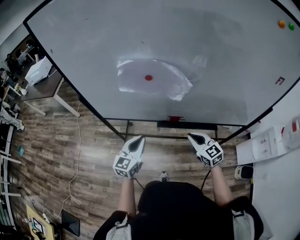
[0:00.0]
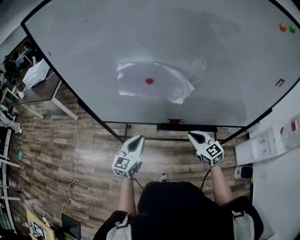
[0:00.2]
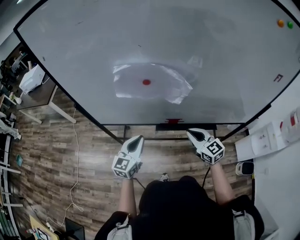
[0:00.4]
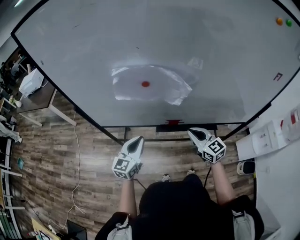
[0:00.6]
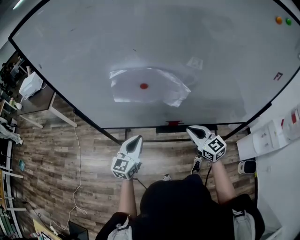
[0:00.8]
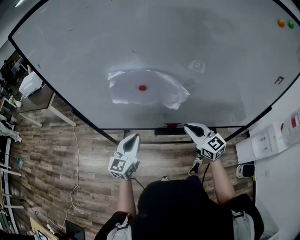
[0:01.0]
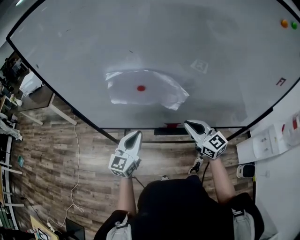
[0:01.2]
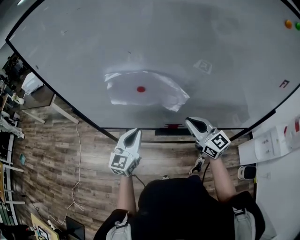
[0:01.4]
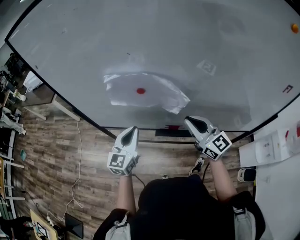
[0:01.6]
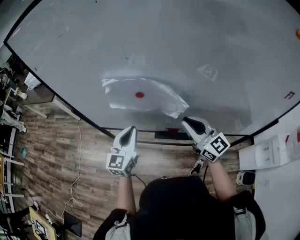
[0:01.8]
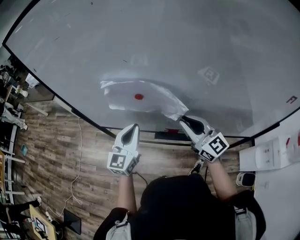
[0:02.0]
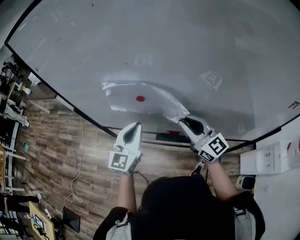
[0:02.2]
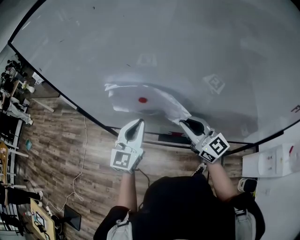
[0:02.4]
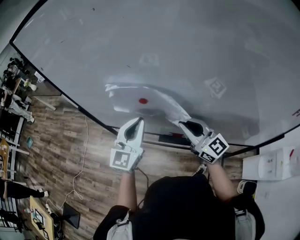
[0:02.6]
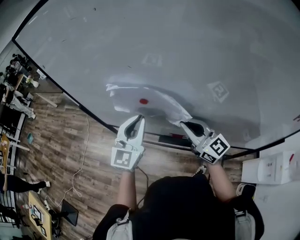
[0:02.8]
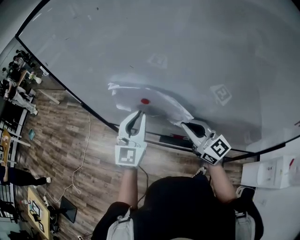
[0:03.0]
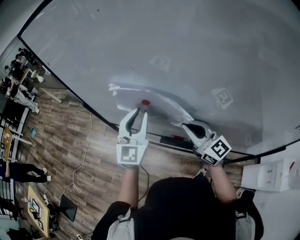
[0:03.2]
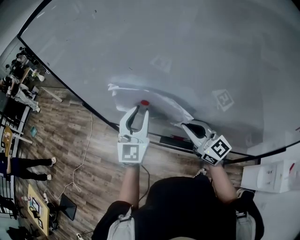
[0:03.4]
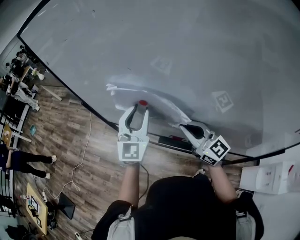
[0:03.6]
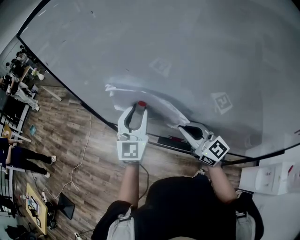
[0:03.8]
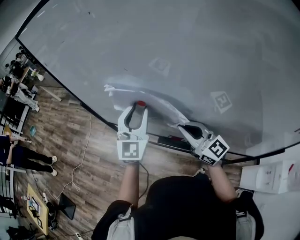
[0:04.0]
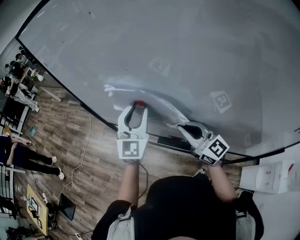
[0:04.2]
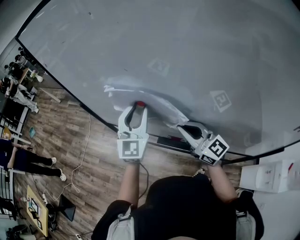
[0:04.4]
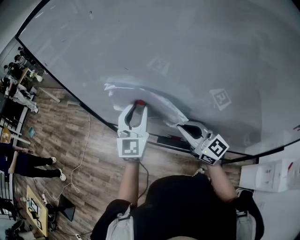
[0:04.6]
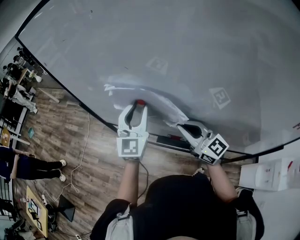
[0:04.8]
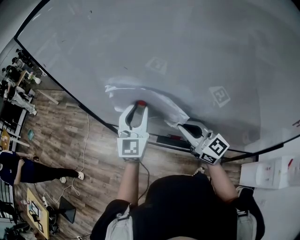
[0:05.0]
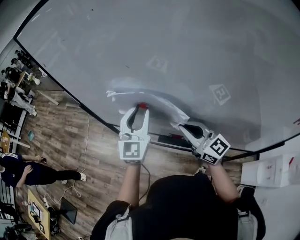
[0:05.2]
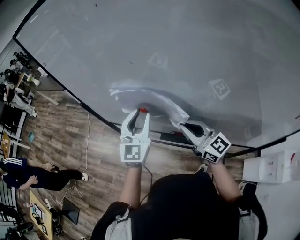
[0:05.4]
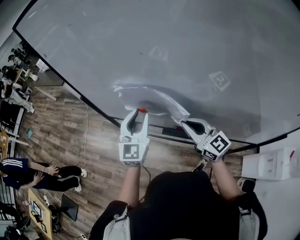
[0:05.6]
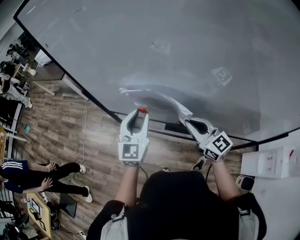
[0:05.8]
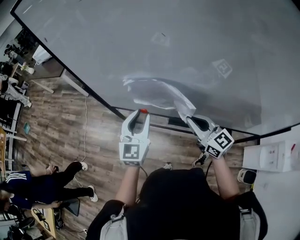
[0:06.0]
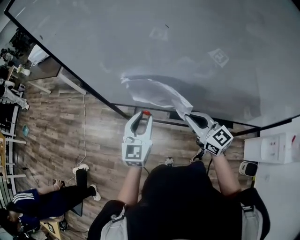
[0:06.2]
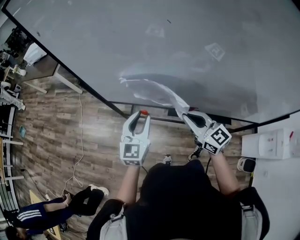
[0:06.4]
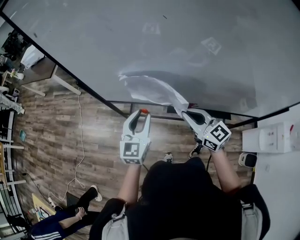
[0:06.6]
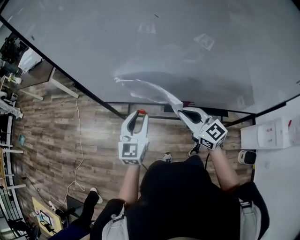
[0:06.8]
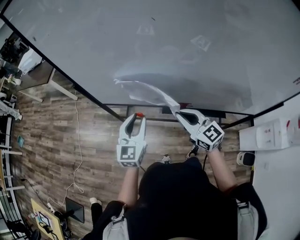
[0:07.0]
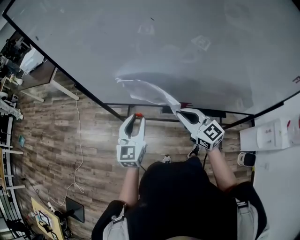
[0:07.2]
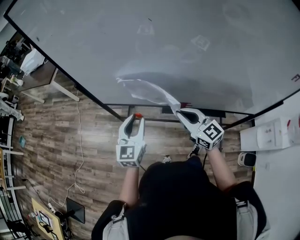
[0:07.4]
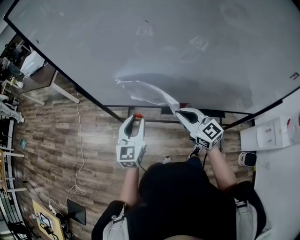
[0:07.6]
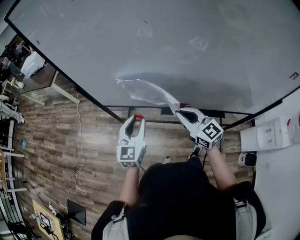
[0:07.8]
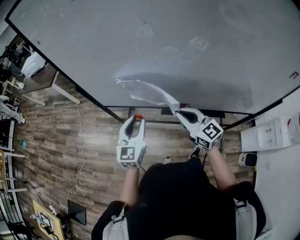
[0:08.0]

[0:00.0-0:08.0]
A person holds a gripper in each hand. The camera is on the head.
0:00.0 to 0:01.6: The left gripper shifts about 10 cm forward and upward. The right gripper goes roughly 15 cm upward and forward, and turns by some 20 degrees.
0:01.6 to 0:03.2: The left gripper travels upward and to the right by roughly 15 cm, and turns by some 20 degrees; the right gripper ends up about 5 cm from where it was.
0:03.2 to 0:04.8: There are only small adjustments of the grippers.
0:04.8 to 0:06.4: The left gripper is displaced downward and to the left by roughly 20 cm, and swivels about 20 degrees, while the right gripper moves to the left and downward, some 10 cm.
0:06.4 to 0:08.0: There are only small adjustments of the grippers.

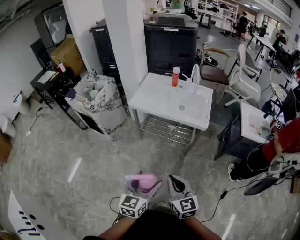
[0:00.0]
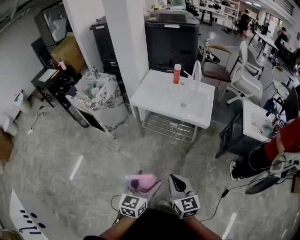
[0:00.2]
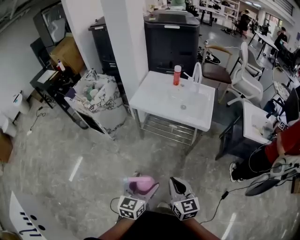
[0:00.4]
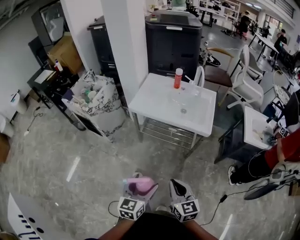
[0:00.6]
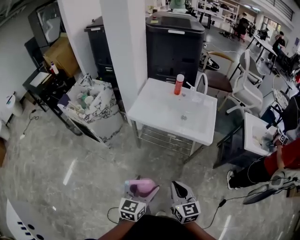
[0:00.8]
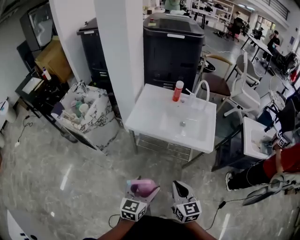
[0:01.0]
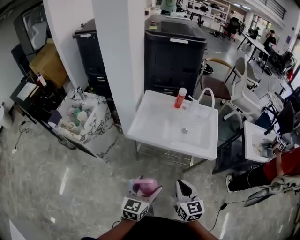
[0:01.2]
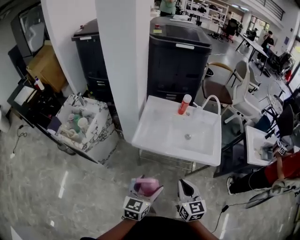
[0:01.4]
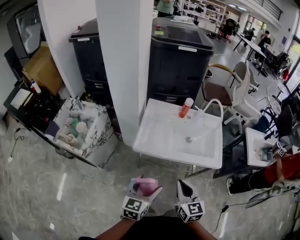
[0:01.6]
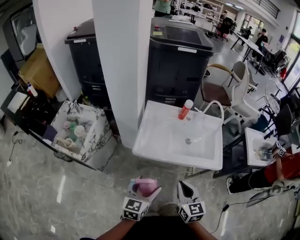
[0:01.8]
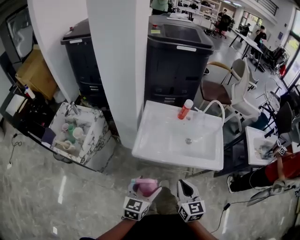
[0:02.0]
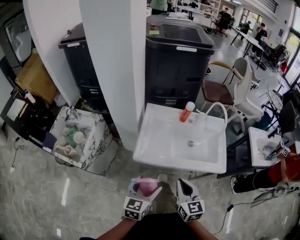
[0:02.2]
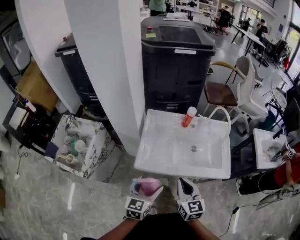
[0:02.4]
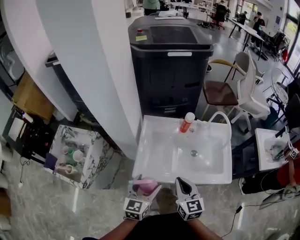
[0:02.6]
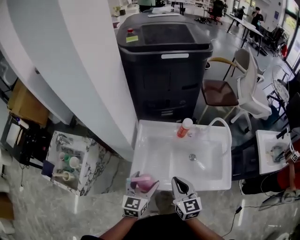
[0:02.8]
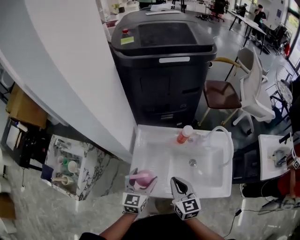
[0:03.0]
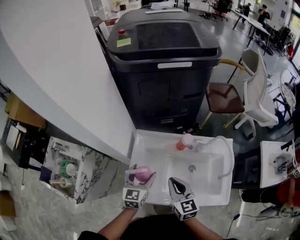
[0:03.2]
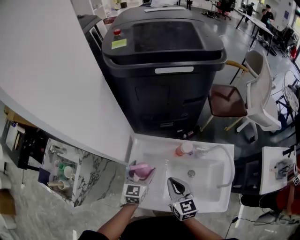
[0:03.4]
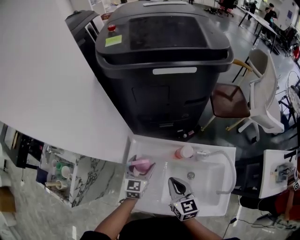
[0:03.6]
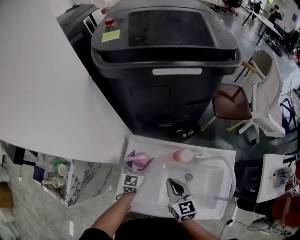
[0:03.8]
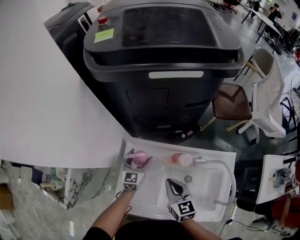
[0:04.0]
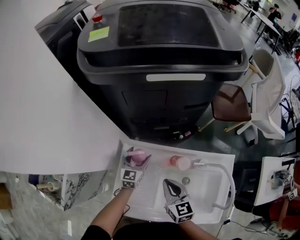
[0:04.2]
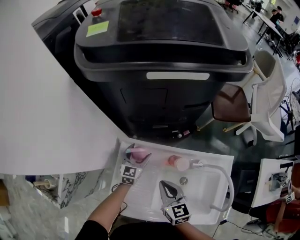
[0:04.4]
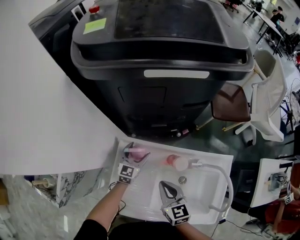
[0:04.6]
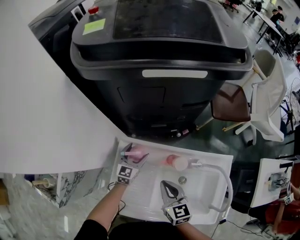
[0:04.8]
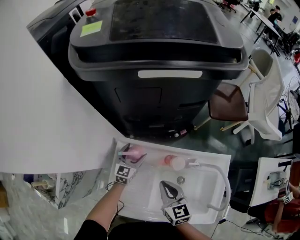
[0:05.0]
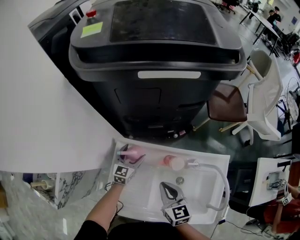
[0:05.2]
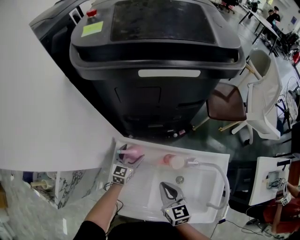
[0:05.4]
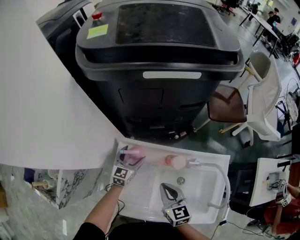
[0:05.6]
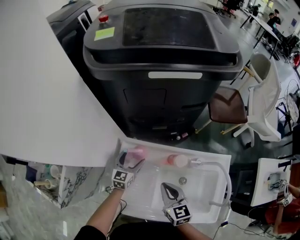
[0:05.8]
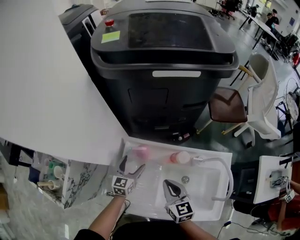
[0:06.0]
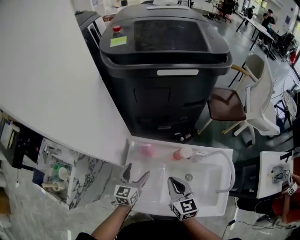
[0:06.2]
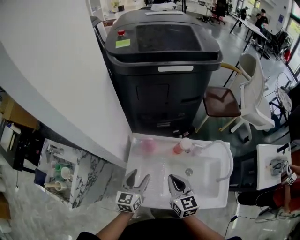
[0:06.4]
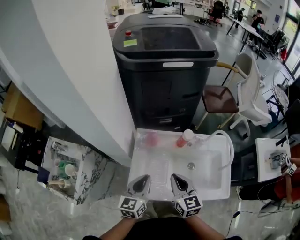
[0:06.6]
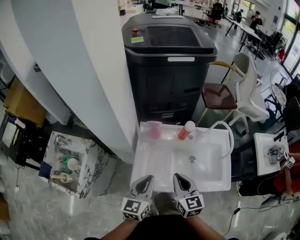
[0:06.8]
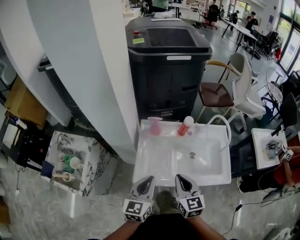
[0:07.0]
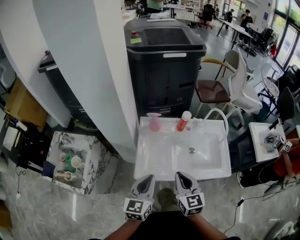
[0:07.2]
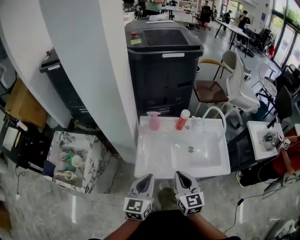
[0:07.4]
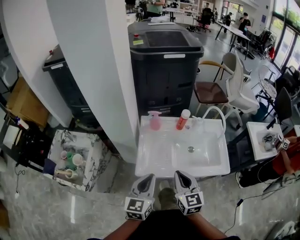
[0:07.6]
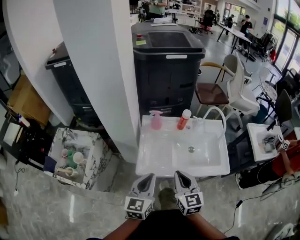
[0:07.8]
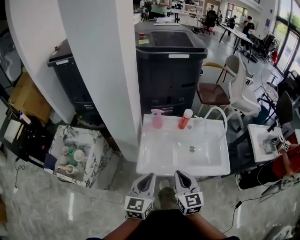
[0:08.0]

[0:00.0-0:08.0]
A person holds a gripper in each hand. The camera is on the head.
0:00.0 to 0:01.6: The grippers both shift forward and to the left by about 40 cm.
0:01.6 to 0:03.2: Both grippers travel together forward, some 40 cm.
0:03.2 to 0:04.8: The right gripper travels forward and downward by roughly 15 cm. Meanwhile the left gripper moves forward and downward, approximately 25 cm.
0:04.8 to 0:06.4: The left gripper heads backward and upward, covering about 25 cm. Meanwhile the right gripper is displaced backward and upward by some 10 cm.
0:06.4 to 0:08.0: The right gripper travels backward by some 25 cm; the left gripper shifts approximately 30 cm backward and upward, and closes.

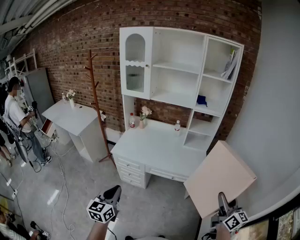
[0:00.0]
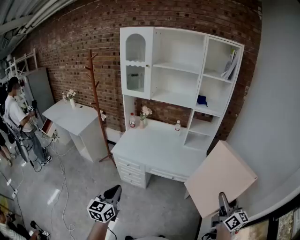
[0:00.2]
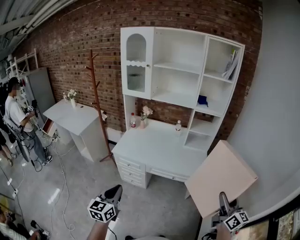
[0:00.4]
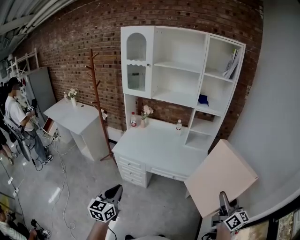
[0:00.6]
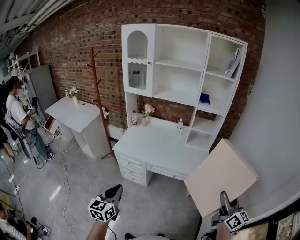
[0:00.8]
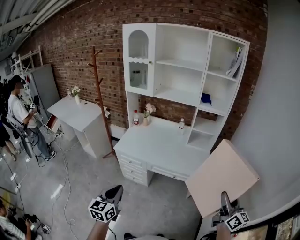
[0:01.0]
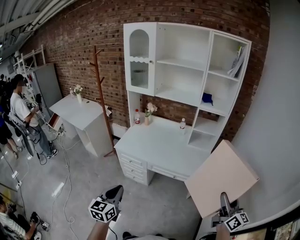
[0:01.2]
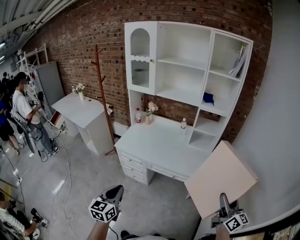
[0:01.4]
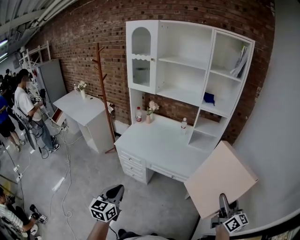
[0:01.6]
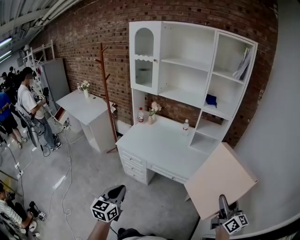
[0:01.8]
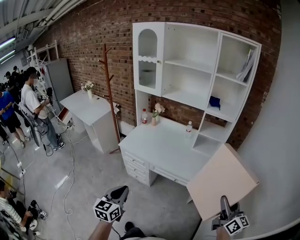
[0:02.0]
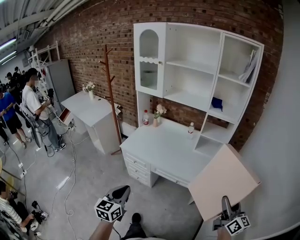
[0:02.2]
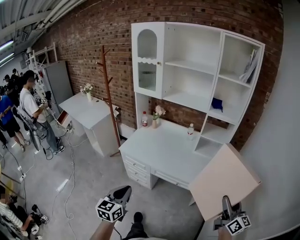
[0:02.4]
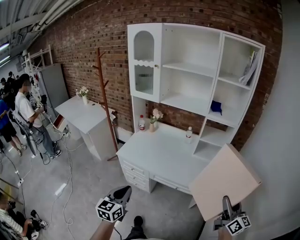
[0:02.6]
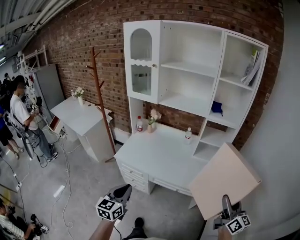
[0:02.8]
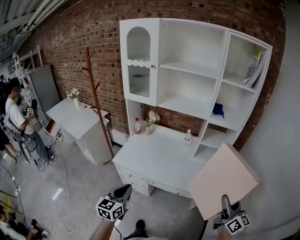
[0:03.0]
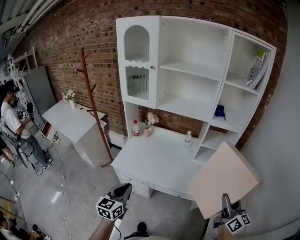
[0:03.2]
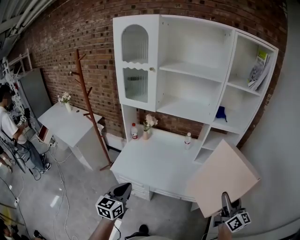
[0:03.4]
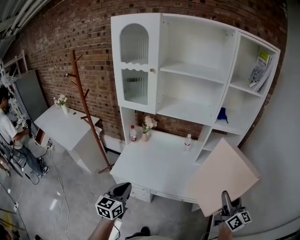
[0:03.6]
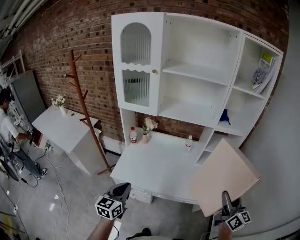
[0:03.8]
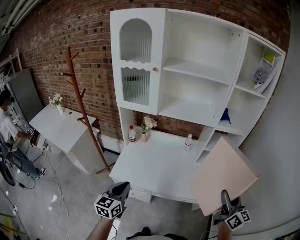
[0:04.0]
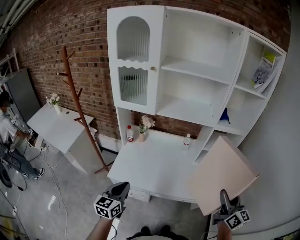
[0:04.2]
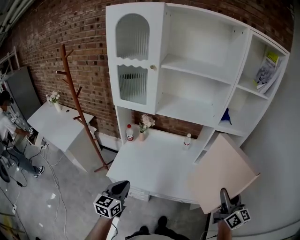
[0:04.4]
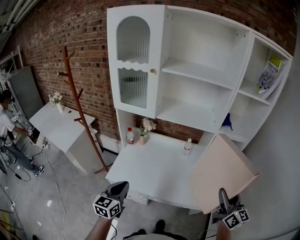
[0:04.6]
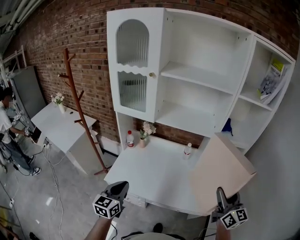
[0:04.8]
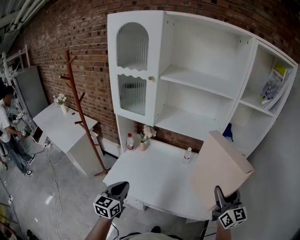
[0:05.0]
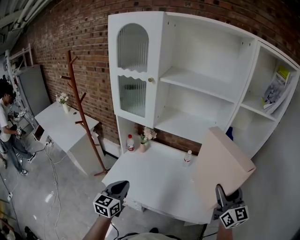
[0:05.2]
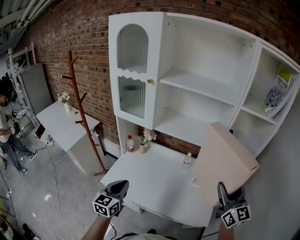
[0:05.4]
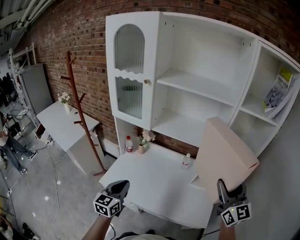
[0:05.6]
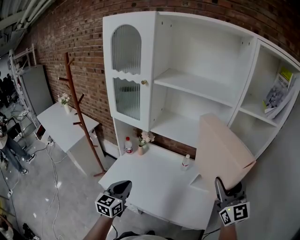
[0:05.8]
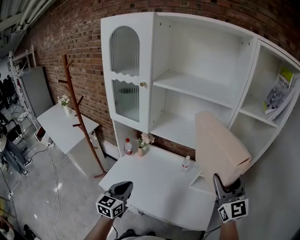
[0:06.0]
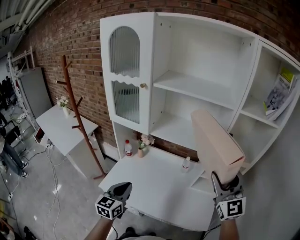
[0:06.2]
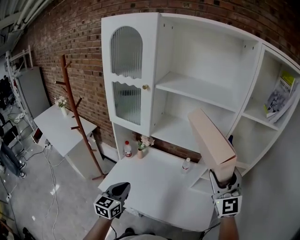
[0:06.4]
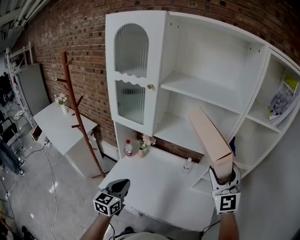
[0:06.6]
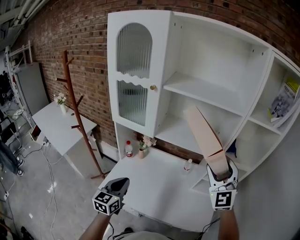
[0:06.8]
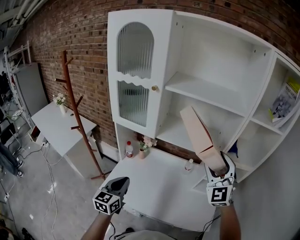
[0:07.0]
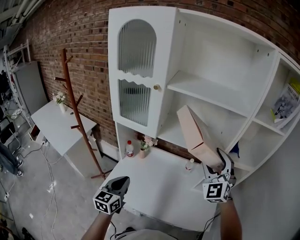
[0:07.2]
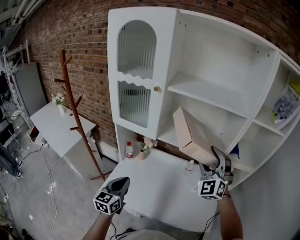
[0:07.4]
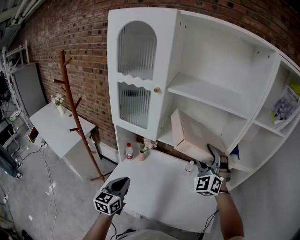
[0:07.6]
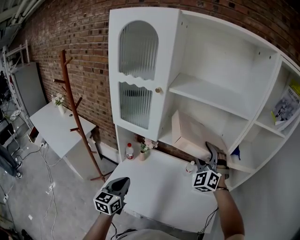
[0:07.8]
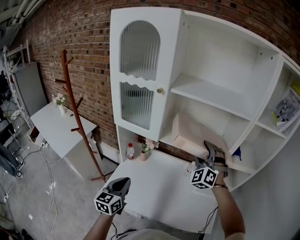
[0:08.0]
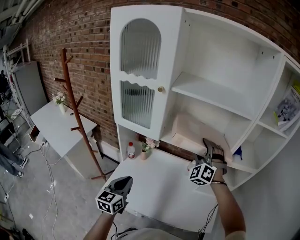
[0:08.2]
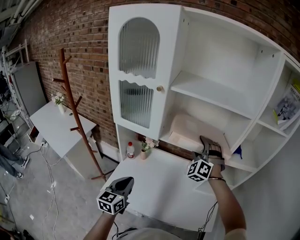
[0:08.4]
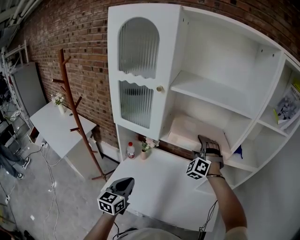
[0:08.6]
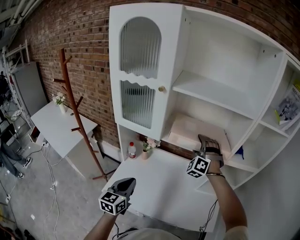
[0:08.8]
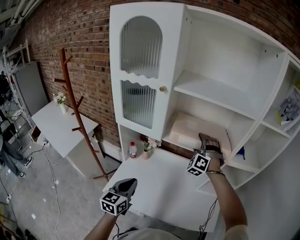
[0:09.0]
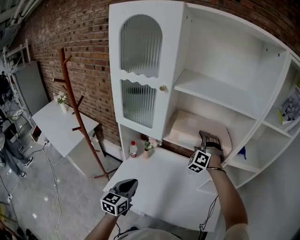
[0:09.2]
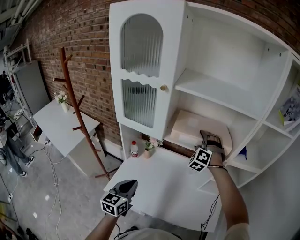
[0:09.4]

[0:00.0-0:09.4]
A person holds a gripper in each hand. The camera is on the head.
0:00.0 to 0:01.6: Both grippers travel together to the right, approximately 5 cm.
0:01.6 to 0:03.2: The left gripper heads forward, covering roughly 25 cm; the right gripper goes some 20 cm forward and to the left.
0:03.2 to 0:04.8: The left gripper travels forward by approximately 15 cm, while the right gripper moves forward and to the left, roughly 20 cm.
0:04.8 to 0:06.2: The right gripper goes roughly 15 cm forward and upward, and swivels approximately 40 degrees. The left gripper travels forward and to the right by approximately 10 cm.
0:06.2 to 0:07.8: The left gripper shifts roughly 10 cm to the left and forward. The right gripper is displaced forward and to the left by some 20 cm, and rotates around the line of its fingers by about 40 degrees, counterclockwise from behind.
0:07.8 to 0:09.4: The right gripper shifts about 15 cm forward and downward, and swivels about 20 degrees.
